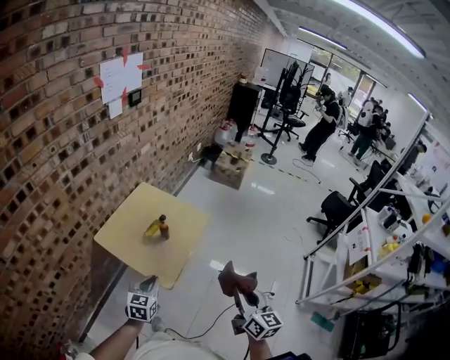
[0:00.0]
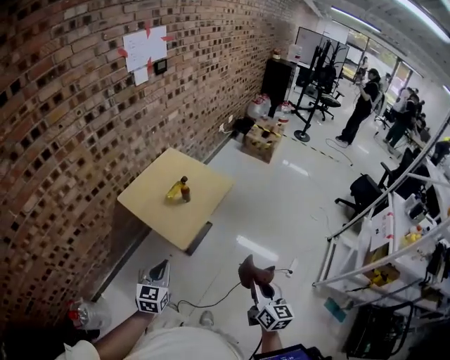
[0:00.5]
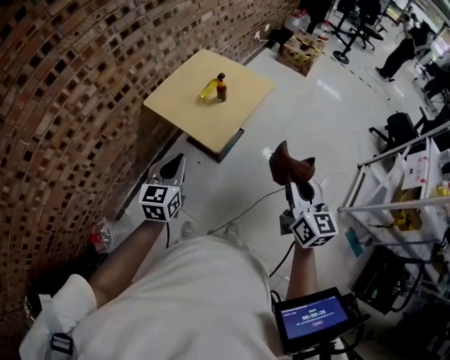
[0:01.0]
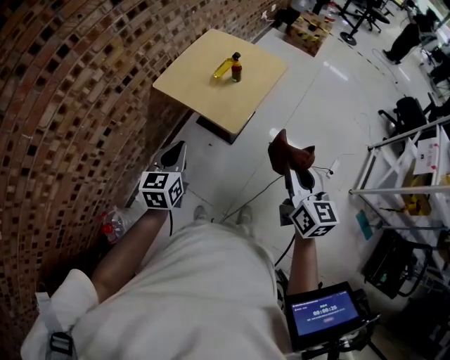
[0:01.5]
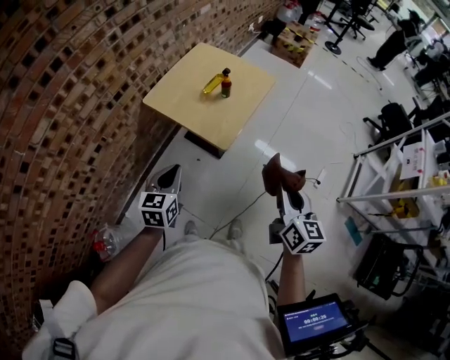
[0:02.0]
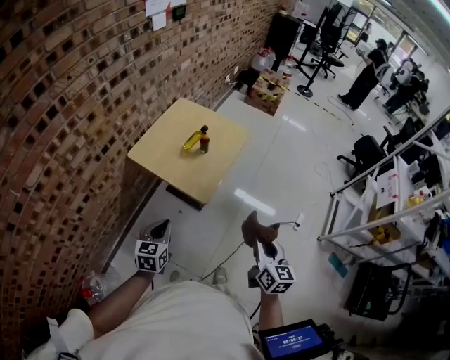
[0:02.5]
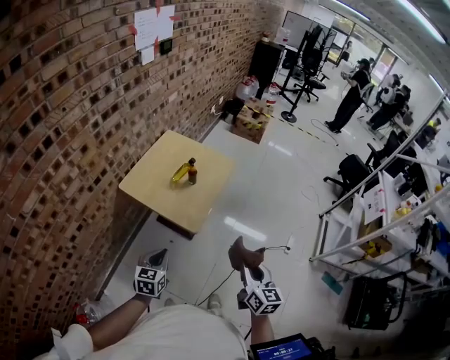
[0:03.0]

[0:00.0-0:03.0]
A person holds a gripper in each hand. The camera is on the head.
0.0 to 1.5 s: The right gripper goes about 15 cm to the left and backward. The left gripper travels backward and to the left by approximately 15 cm.
1.5 to 3.0 s: The left gripper moves downward, roughly 5 cm.

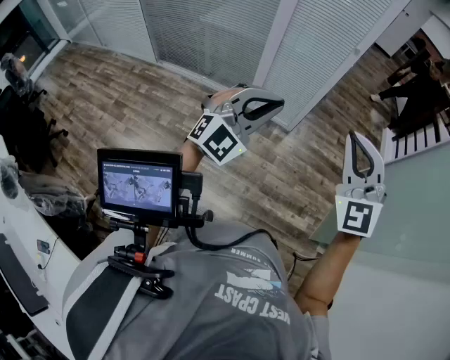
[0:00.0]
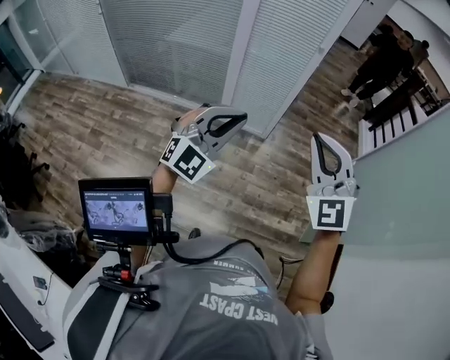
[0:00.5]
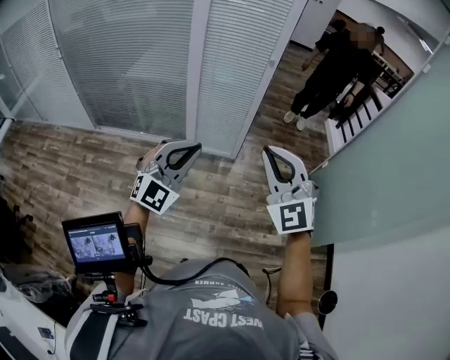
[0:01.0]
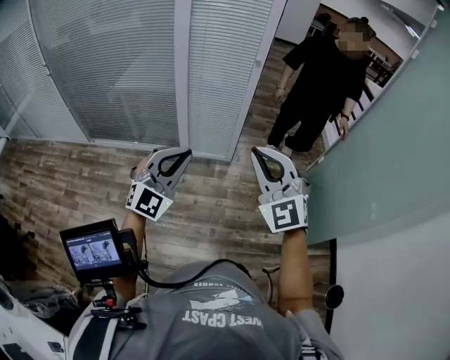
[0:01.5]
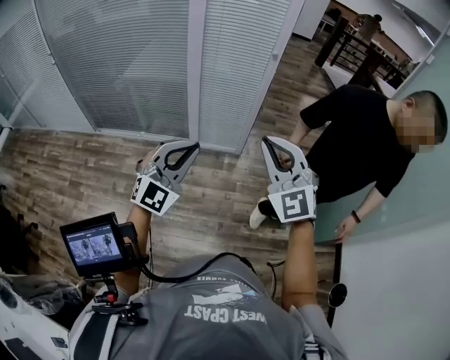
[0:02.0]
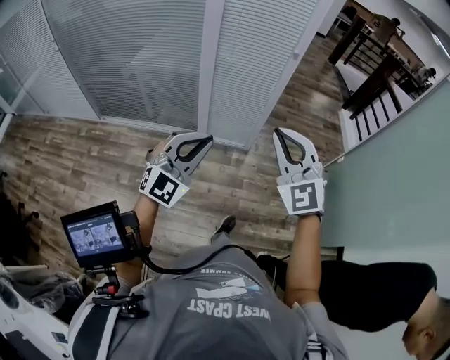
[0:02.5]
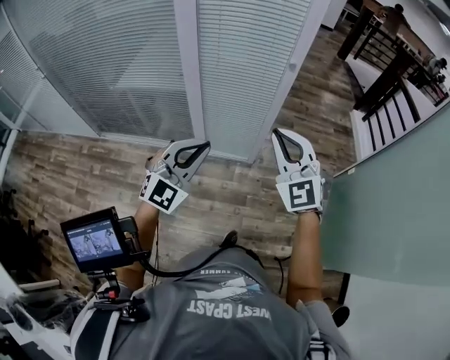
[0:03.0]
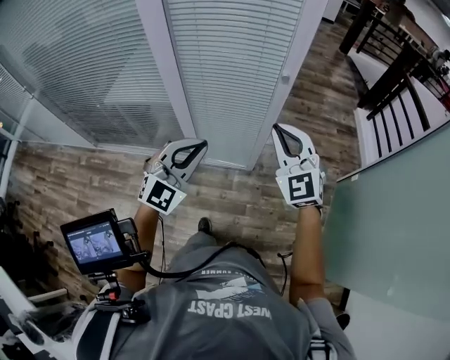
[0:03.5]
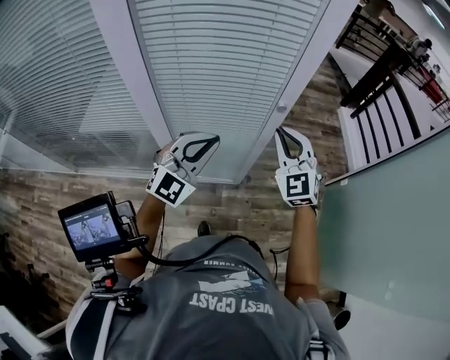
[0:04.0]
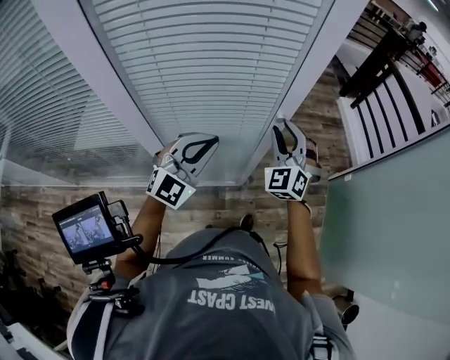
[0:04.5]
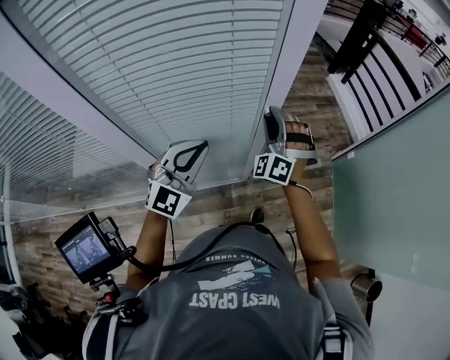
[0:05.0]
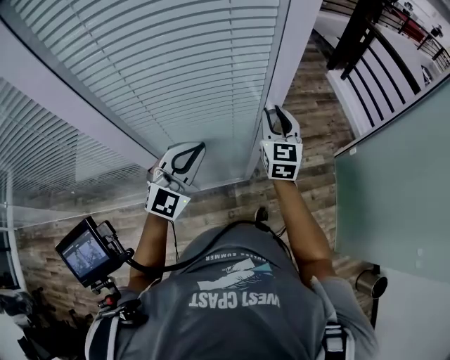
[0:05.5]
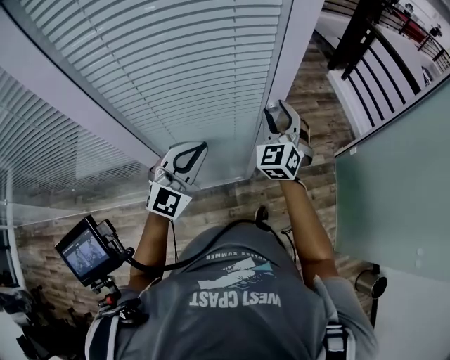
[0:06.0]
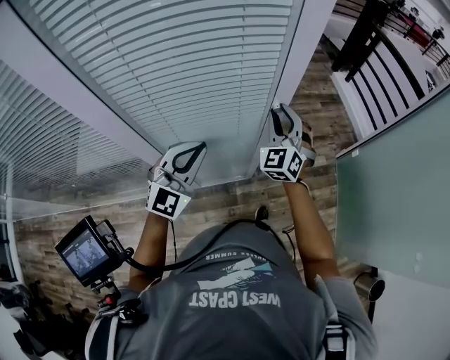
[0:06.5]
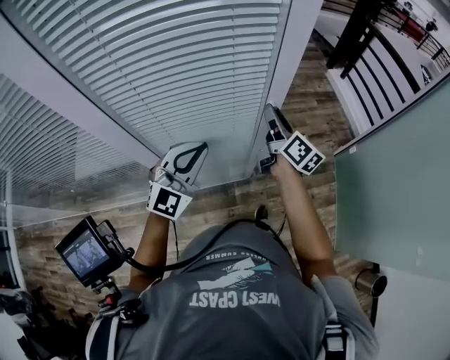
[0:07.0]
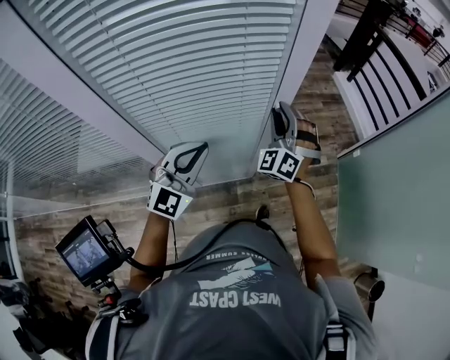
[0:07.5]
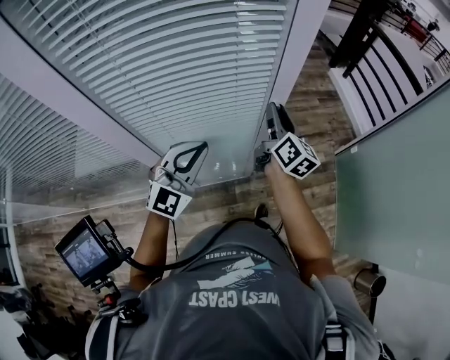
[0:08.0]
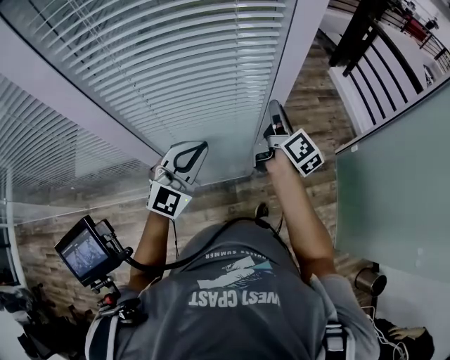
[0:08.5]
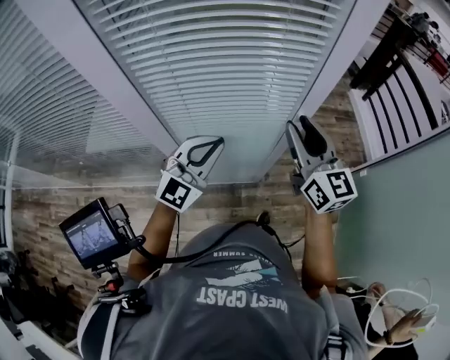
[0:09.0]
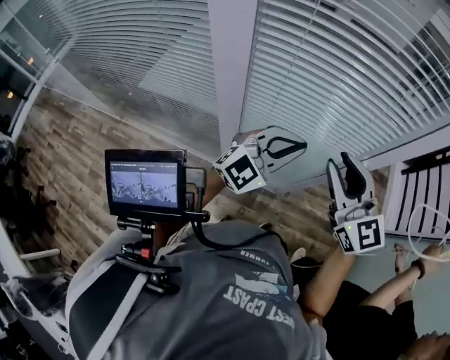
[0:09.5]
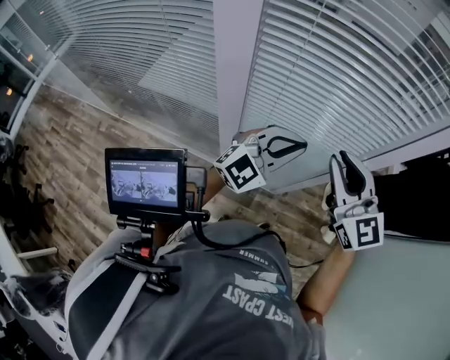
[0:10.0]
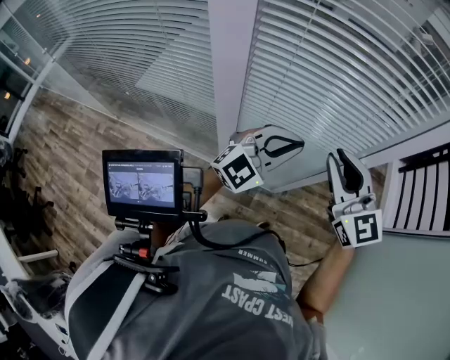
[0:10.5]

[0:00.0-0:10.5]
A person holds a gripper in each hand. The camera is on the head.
0.0 to 2.0 s: Both grippers move forward, about 5 cm.
2.0 to 4.0 s: The two grippers travel together, forward, about 60 cm.
4.0 to 6.5 s: The right gripper moves forward and downward, approximately 15 cm, swivels roughly 30 degrees, and opens up, while the left gripper heads forward, covering some 5 cm.
6.5 to 8.5 s: The right gripper twists about 100 degrees clockwise, seen from behind.
8.5 to 10.5 s: The right gripper ends up approximately 20 cm from where it was, and changes its angle by roughly 90 degrees.

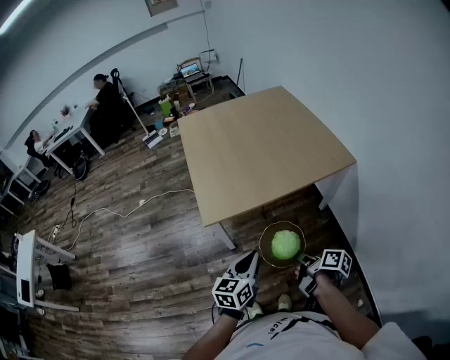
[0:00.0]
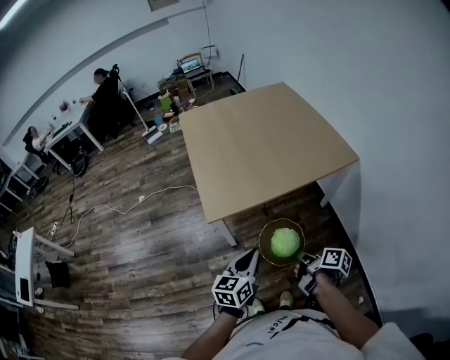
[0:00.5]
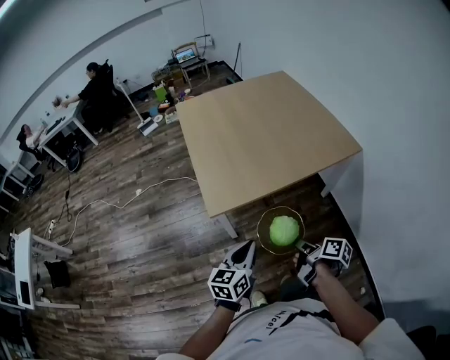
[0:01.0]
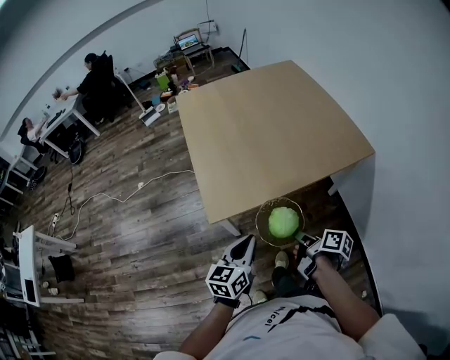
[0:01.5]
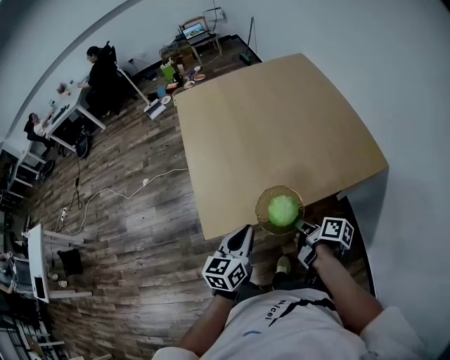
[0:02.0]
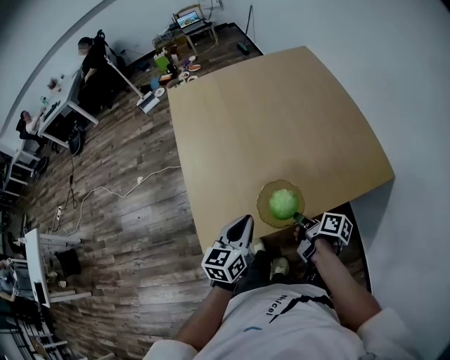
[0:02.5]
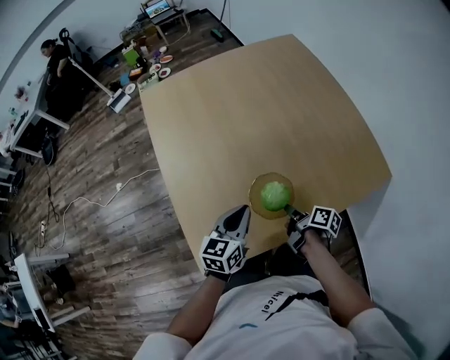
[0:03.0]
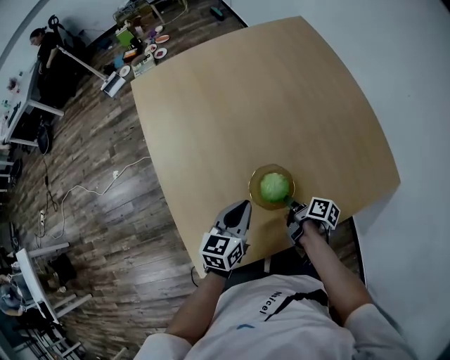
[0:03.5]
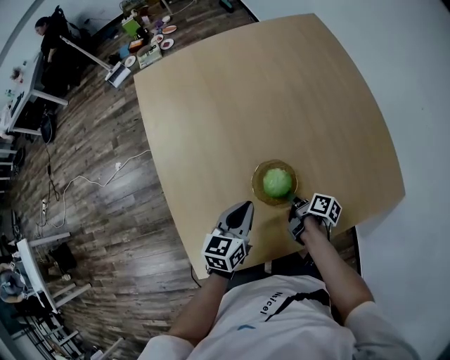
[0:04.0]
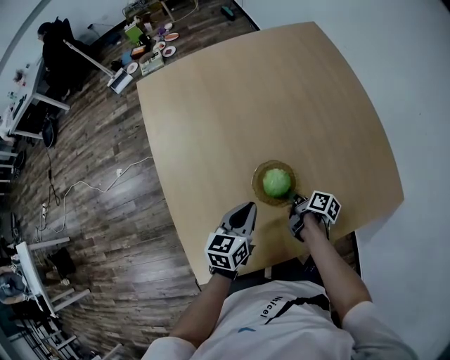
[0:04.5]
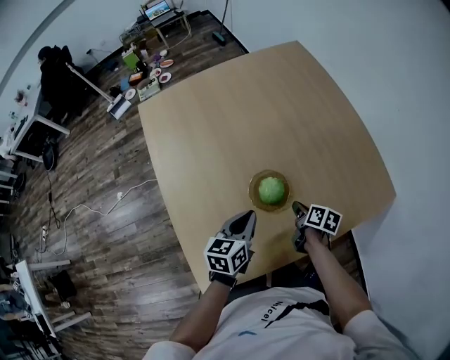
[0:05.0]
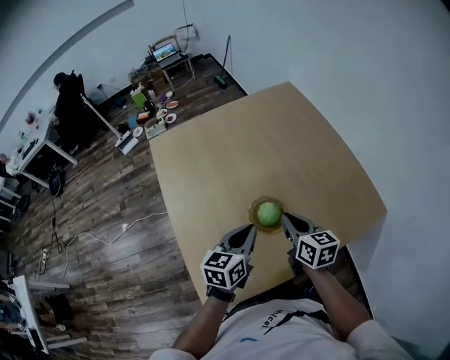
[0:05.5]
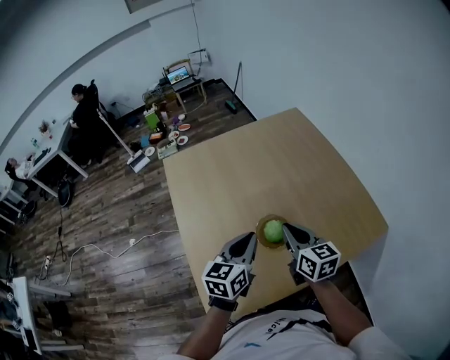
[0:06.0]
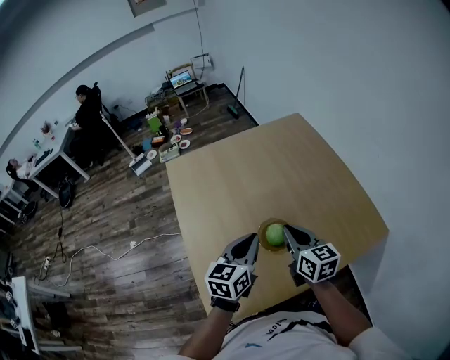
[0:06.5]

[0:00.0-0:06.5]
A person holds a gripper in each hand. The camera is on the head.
0.0 to 2.0 s: The left gripper shifts by approximately 25 cm.
2.0 to 4.5 s: The left gripper ends up approximately 35 cm from where it was.
4.5 to 6.5 s: The left gripper shifts about 20 cm upward.

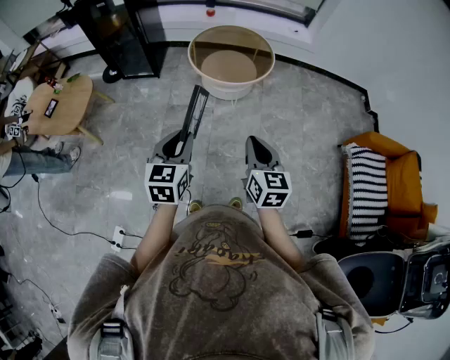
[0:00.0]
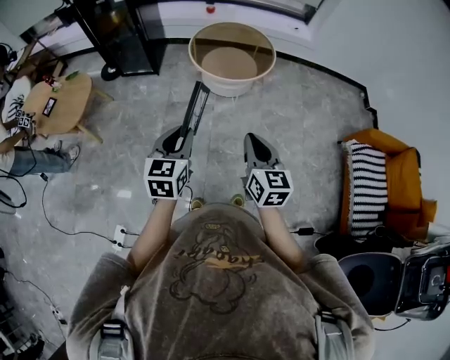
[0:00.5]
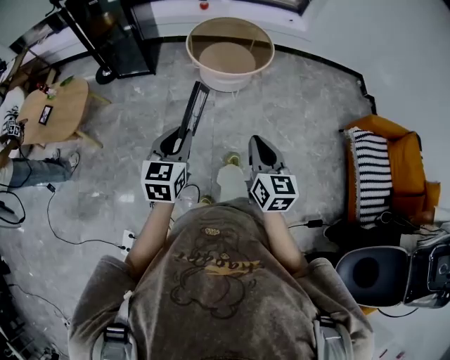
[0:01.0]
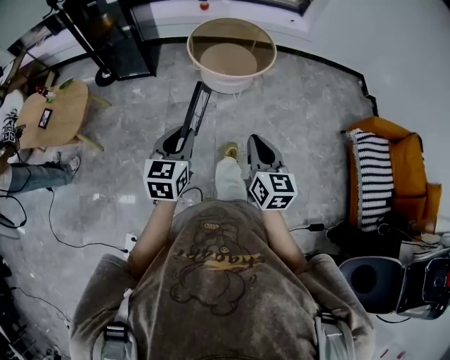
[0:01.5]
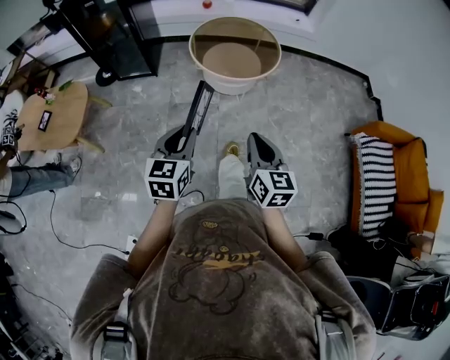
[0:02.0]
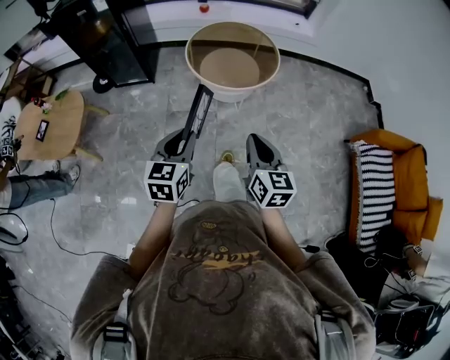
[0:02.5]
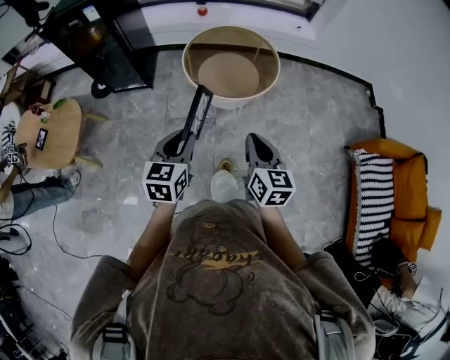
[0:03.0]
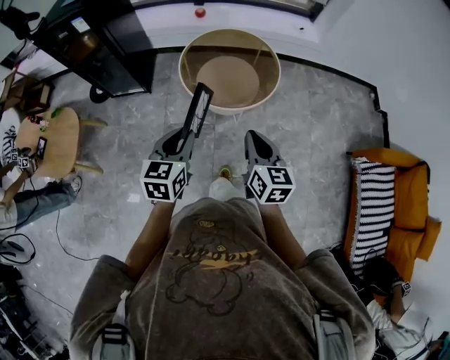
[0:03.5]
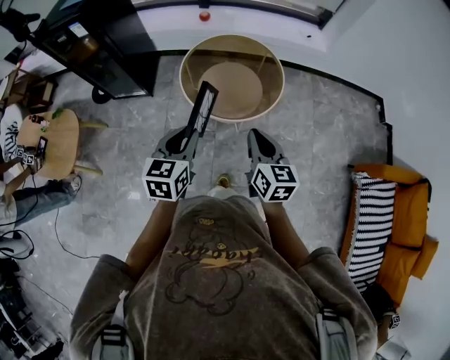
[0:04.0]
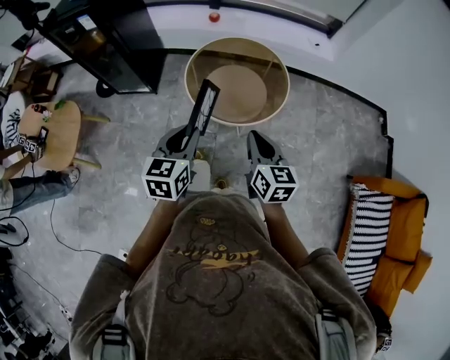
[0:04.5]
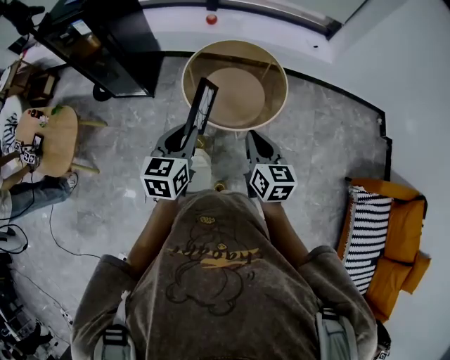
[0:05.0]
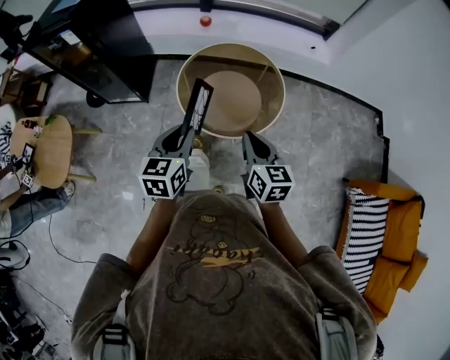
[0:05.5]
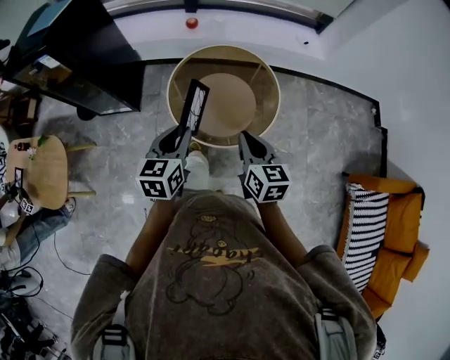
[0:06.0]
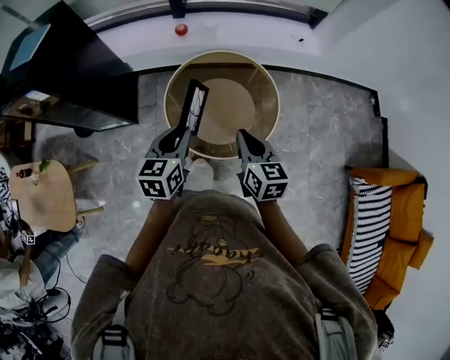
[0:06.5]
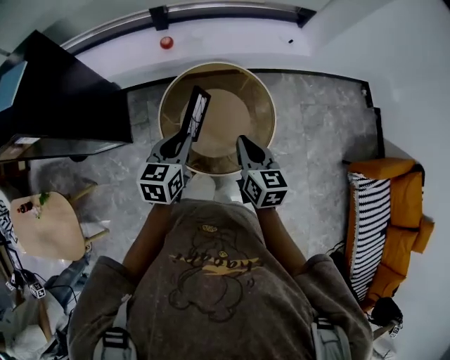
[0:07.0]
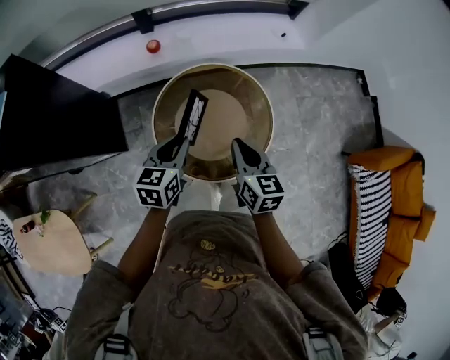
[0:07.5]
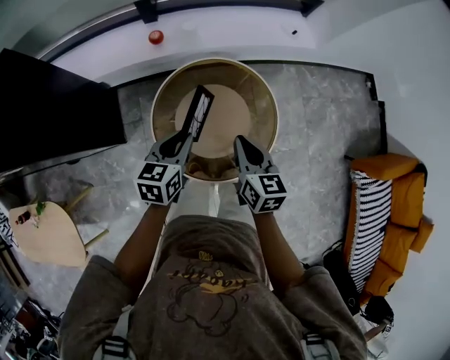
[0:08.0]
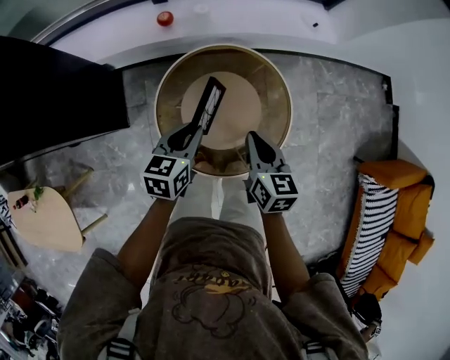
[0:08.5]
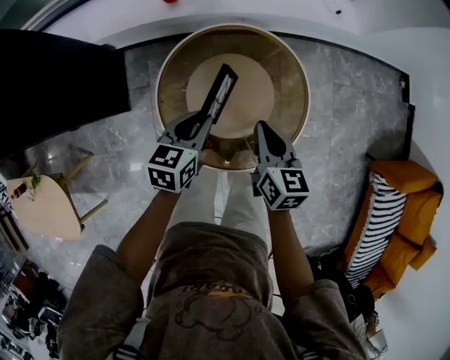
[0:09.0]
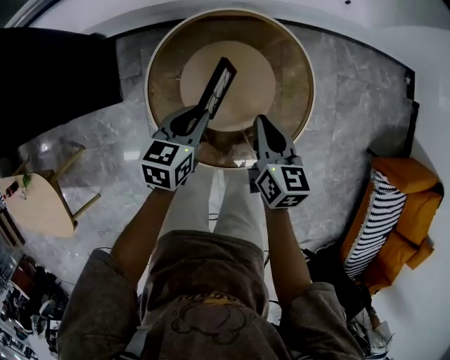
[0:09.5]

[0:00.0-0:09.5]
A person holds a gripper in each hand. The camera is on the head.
0.0 to 2.0 s: The right gripper goes some 10 cm to the left; the left gripper travels to the left and forward by some 10 cm.
2.0 to 4.0 s: Both grippers travel together forward, about 30 cm.
4.0 to 5.5 s: The two grippers go some 10 cm forward.
5.5 to 7.5 s: Both grippers move forward, approximately 25 cm. The left gripper turns by some 20 degrees.
7.5 to 9.5 s: Both grippers travel together downward, approximately 20 cm.
